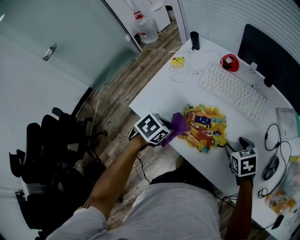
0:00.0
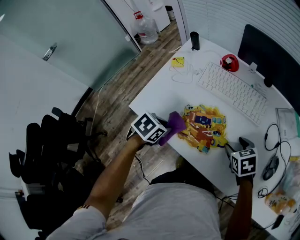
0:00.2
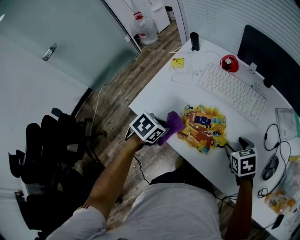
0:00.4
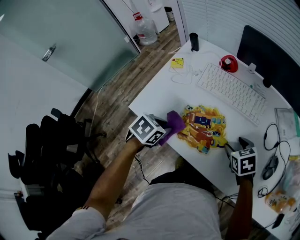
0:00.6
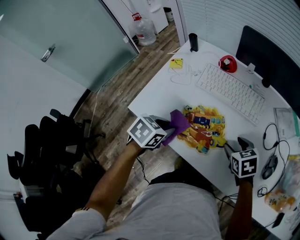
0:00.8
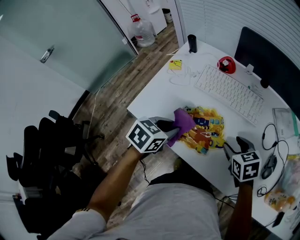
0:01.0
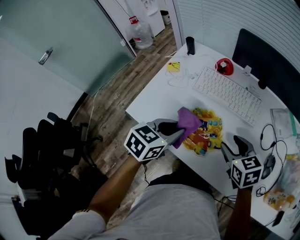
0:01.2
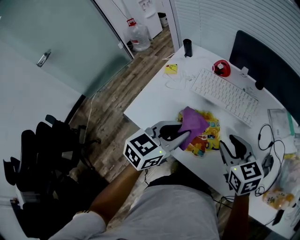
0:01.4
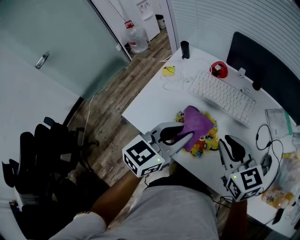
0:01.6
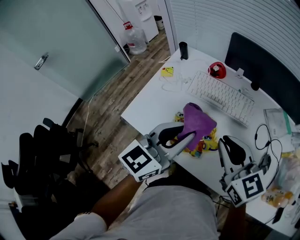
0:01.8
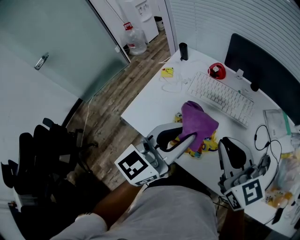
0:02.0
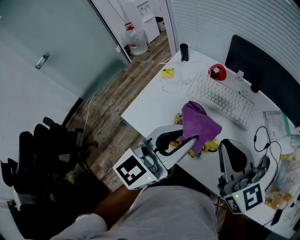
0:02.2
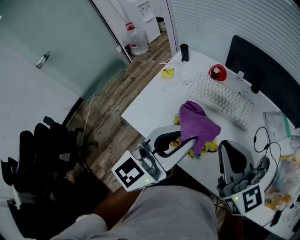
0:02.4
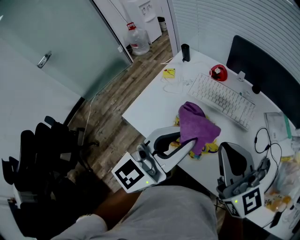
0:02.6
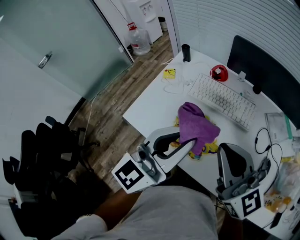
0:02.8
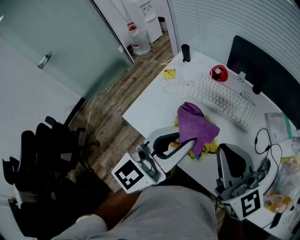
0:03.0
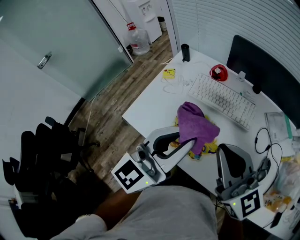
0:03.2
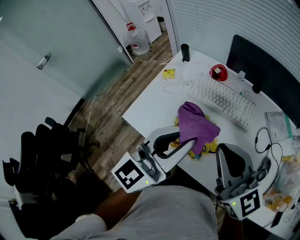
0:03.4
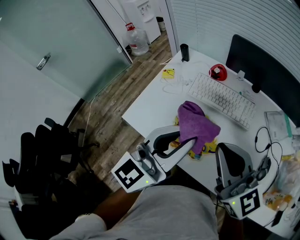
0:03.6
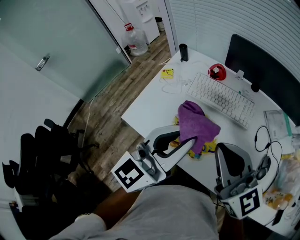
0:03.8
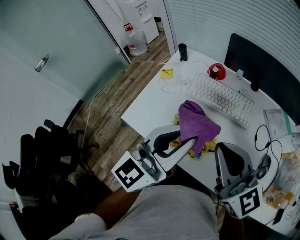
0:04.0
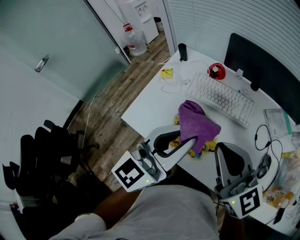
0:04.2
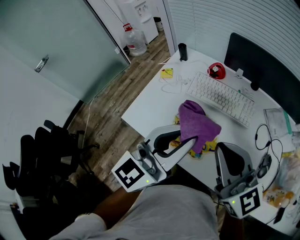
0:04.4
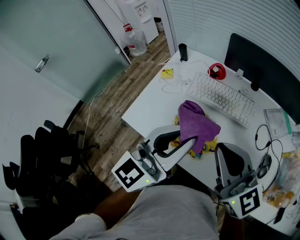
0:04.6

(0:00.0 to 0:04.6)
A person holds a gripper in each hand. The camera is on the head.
0:00.0 - 0:01.6: The right gripper shifts about 20 cm upward, points its fingers approximately 40 degrees further upward, and closes. The left gripper goes some 20 cm upward and to the right, and tips its fingers upward by about 50 degrees.
0:01.6 - 0:03.0: Both grippers move upward, about 10 cm. The left gripper changes its angle by approximately 20 degrees. The right gripper changes its angle by about 30 degrees.
0:03.0 - 0:04.6: Both grippers stay put.

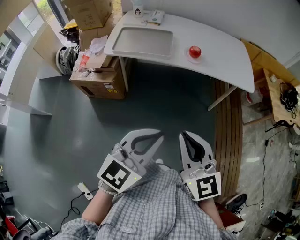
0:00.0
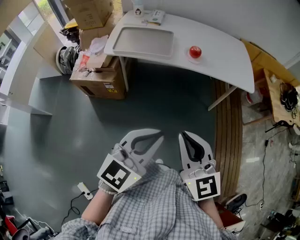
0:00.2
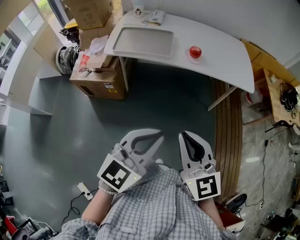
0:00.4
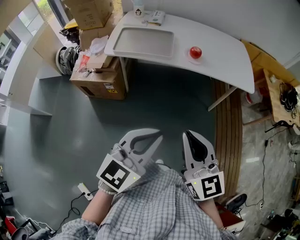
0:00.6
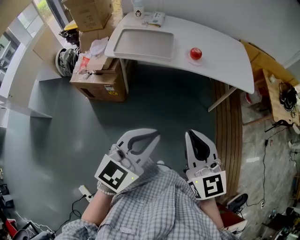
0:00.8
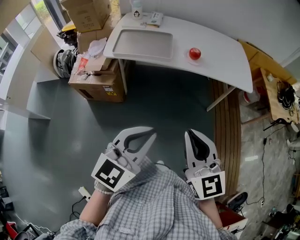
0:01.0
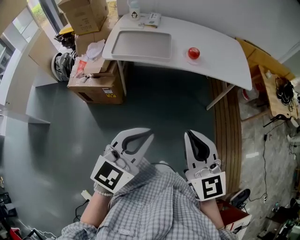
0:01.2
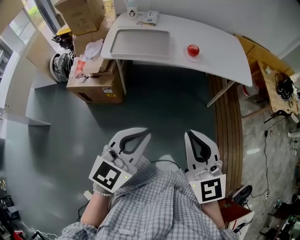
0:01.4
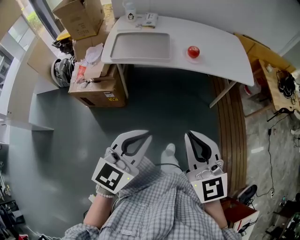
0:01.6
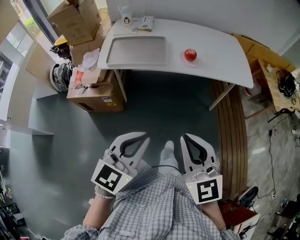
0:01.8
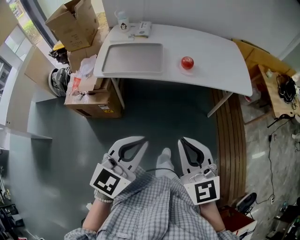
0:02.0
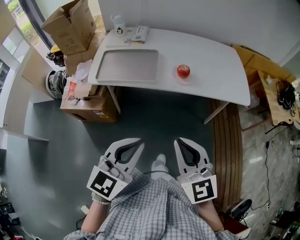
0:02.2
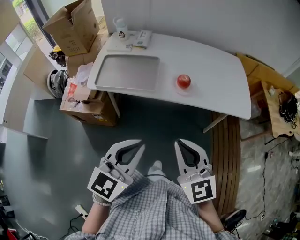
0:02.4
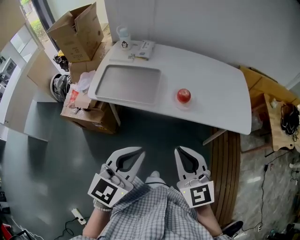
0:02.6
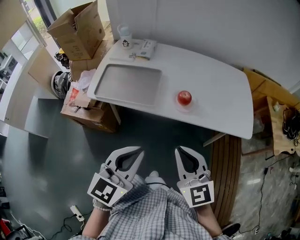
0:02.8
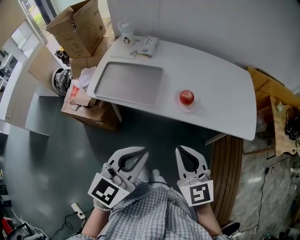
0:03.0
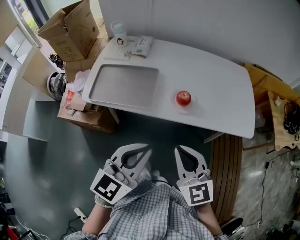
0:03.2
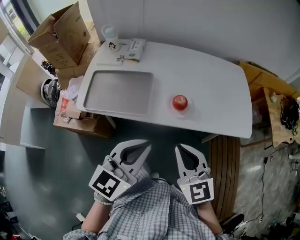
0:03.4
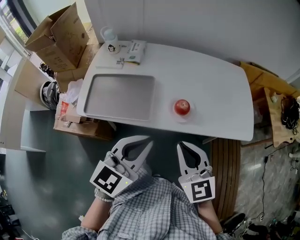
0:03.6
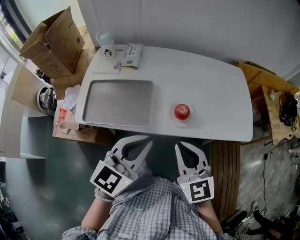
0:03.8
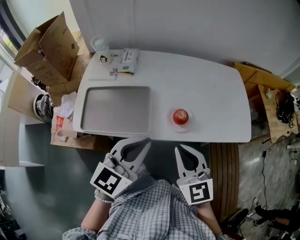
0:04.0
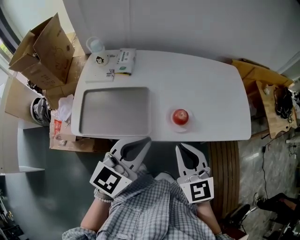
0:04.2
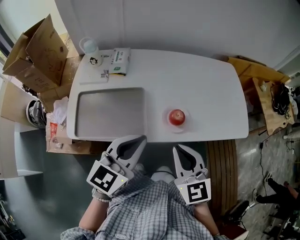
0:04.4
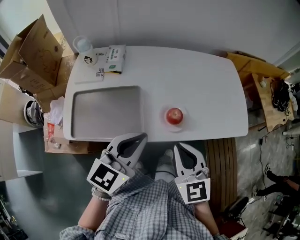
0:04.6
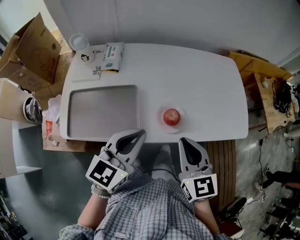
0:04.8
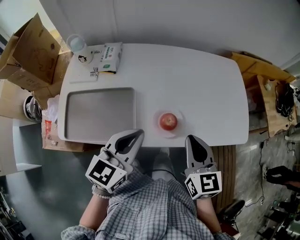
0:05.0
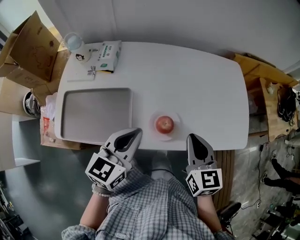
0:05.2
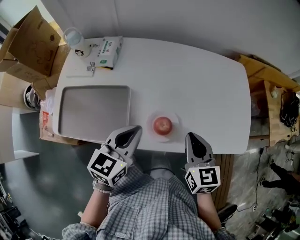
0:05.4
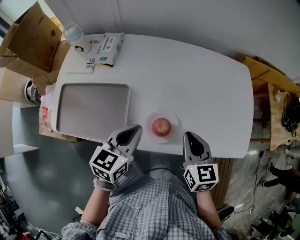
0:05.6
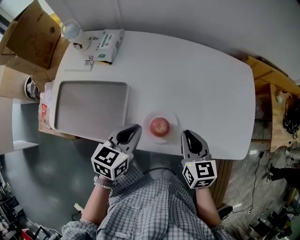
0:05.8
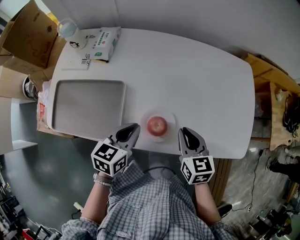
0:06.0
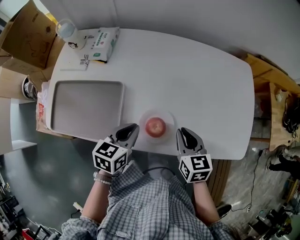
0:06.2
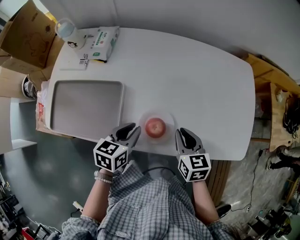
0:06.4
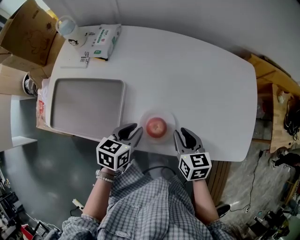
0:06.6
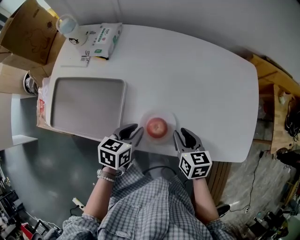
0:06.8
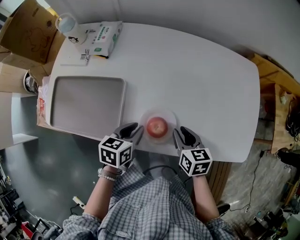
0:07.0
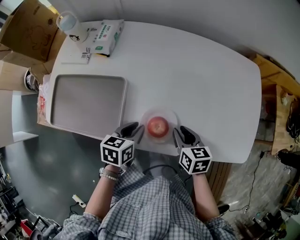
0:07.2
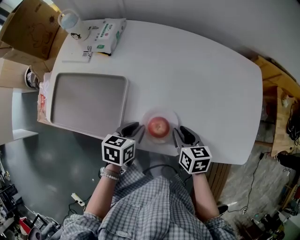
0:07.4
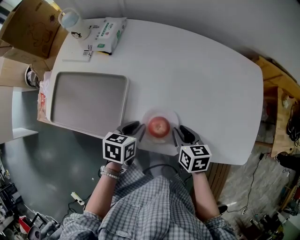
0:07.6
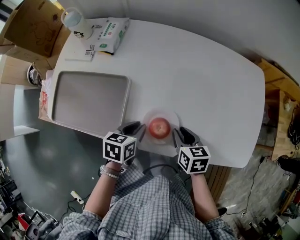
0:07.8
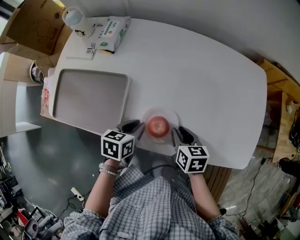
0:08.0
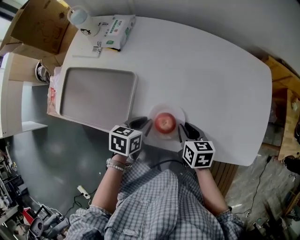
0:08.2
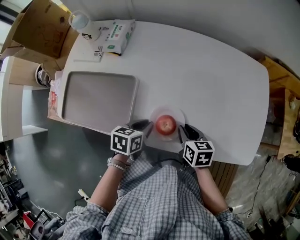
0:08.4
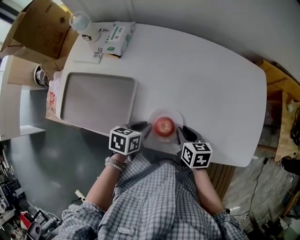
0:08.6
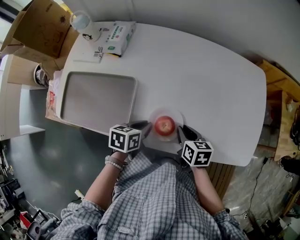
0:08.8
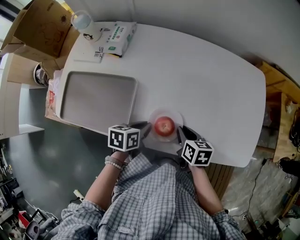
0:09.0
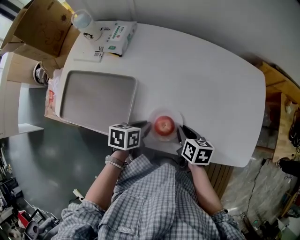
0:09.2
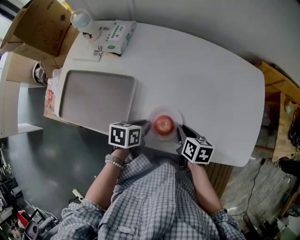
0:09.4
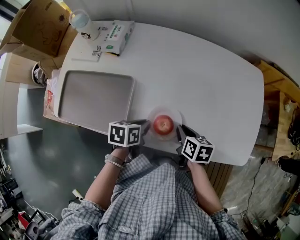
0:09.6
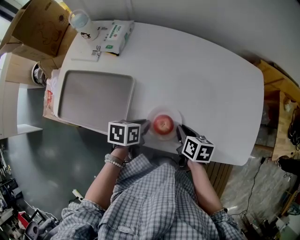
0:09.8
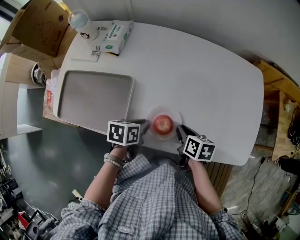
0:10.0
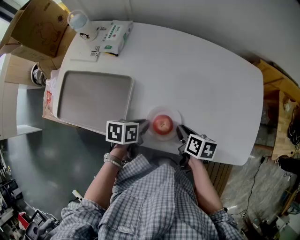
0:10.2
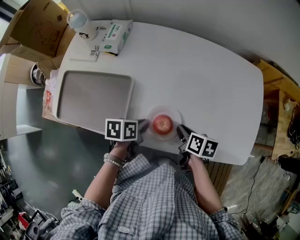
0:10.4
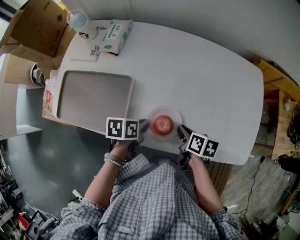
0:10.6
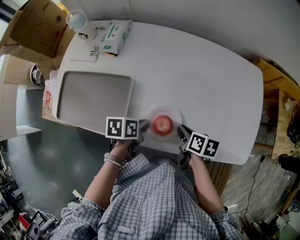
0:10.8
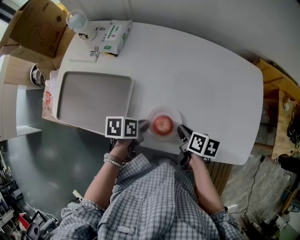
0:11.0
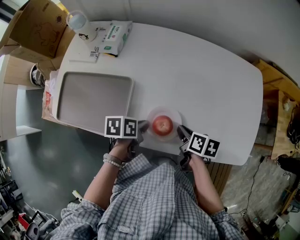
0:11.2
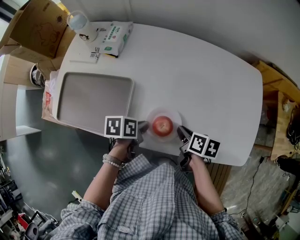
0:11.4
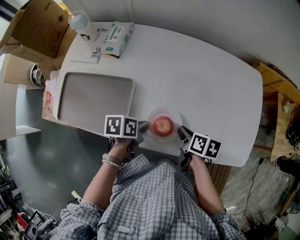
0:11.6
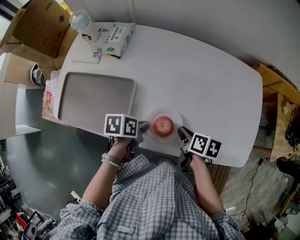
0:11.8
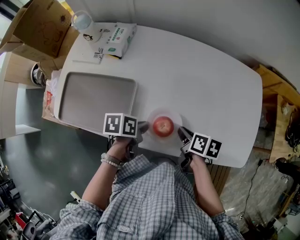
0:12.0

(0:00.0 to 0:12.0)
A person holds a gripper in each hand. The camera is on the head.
0:00.0 - 0:01.6: The left gripper is displaced to the left by roughly 10 cm.
0:01.6 - 0:03.0: The left gripper travels forward and to the right by approximately 25 cm; the right gripper goes roughly 25 cm forward.
0:03.0 - 0:04.4: Both grippers travel together forward, roughly 15 cm.
0:04.4 - 0:06.0: The left gripper is displaced downward, forward and to the right by some 20 cm, and turns by about 30 degrees; the right gripper goes some 25 cm forward, downward and to the right, and swivels approximately 20 degrees.
0:06.0 - 0:07.6: The two grippers go roughly 10 cm downward. The left gripper changes its angle by approximately 20 degrees.
0:07.6 - 0:09.0: The grippers make only small movements.
0:09.0 - 0:12.0: There are only small adjustments of the grippers.

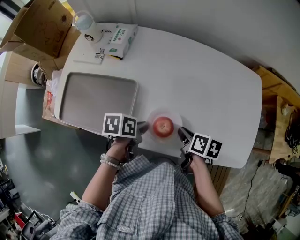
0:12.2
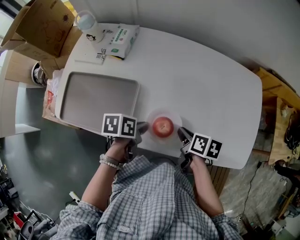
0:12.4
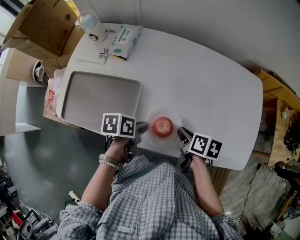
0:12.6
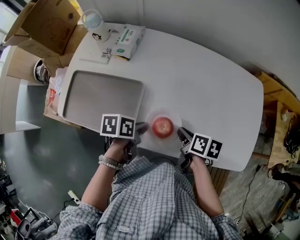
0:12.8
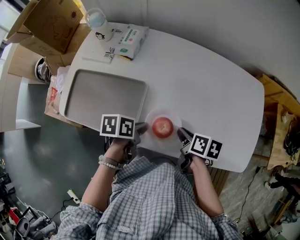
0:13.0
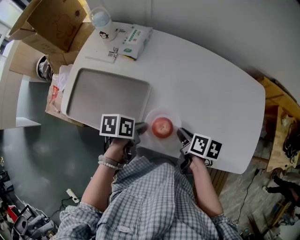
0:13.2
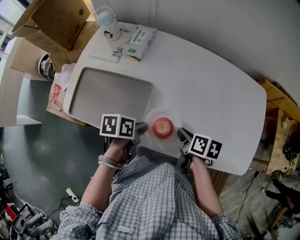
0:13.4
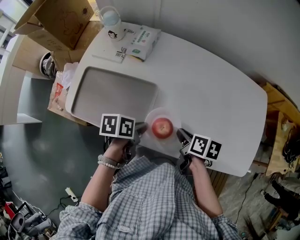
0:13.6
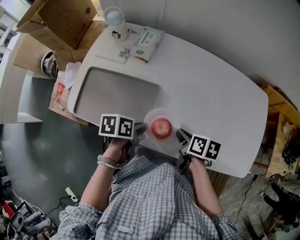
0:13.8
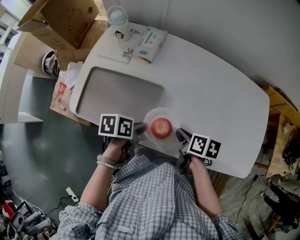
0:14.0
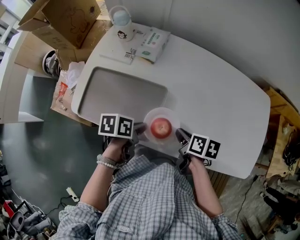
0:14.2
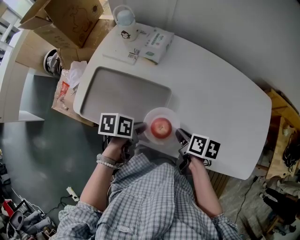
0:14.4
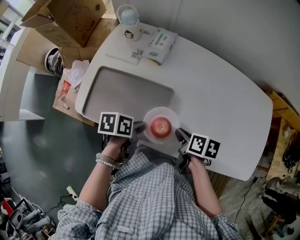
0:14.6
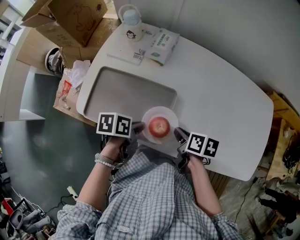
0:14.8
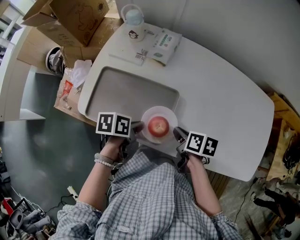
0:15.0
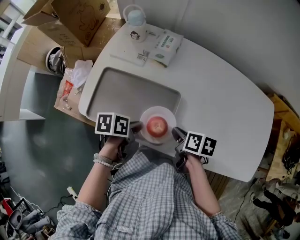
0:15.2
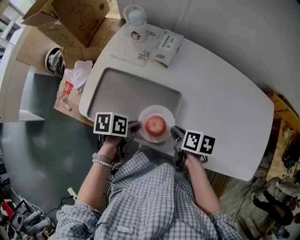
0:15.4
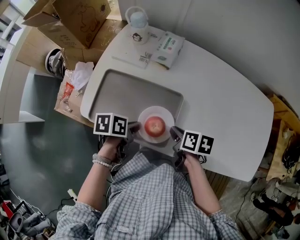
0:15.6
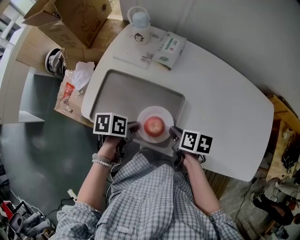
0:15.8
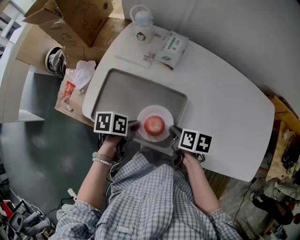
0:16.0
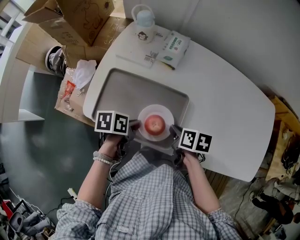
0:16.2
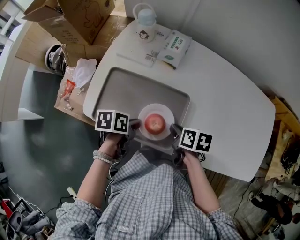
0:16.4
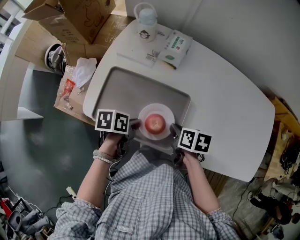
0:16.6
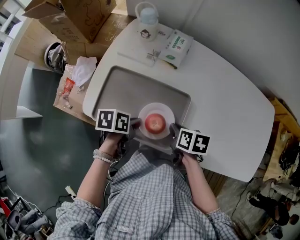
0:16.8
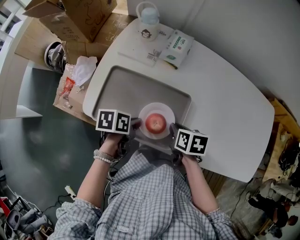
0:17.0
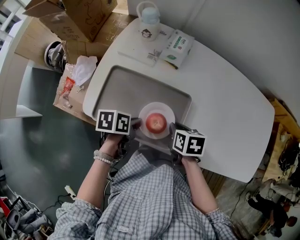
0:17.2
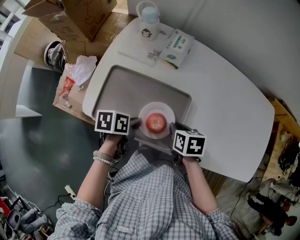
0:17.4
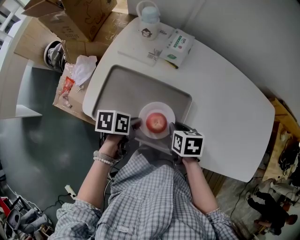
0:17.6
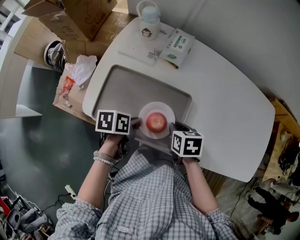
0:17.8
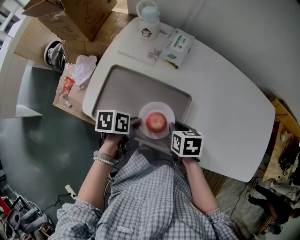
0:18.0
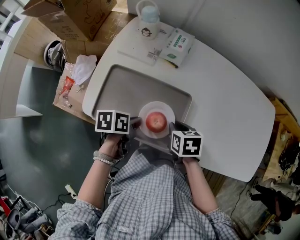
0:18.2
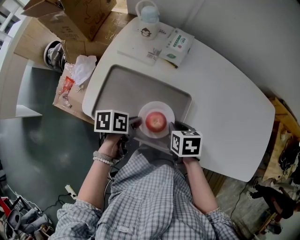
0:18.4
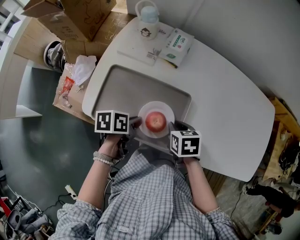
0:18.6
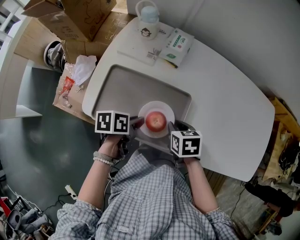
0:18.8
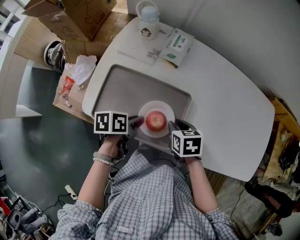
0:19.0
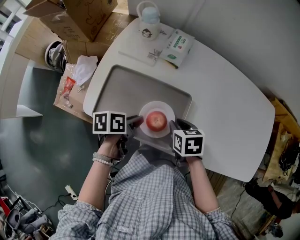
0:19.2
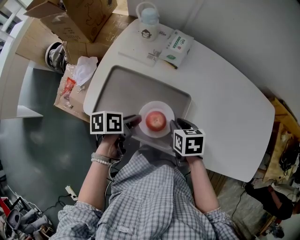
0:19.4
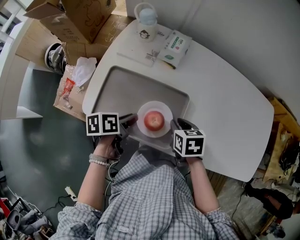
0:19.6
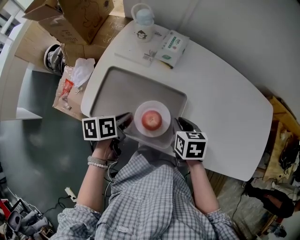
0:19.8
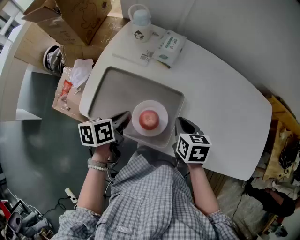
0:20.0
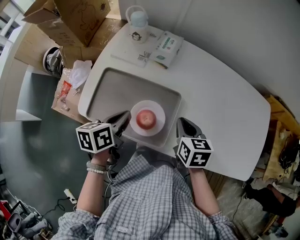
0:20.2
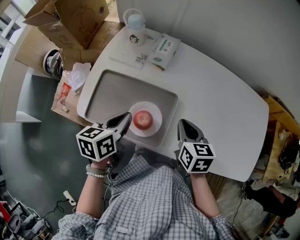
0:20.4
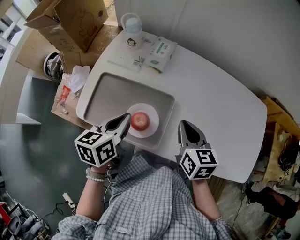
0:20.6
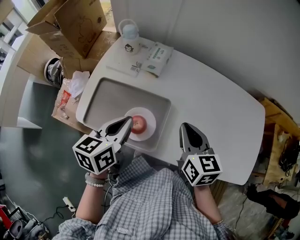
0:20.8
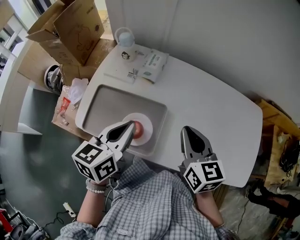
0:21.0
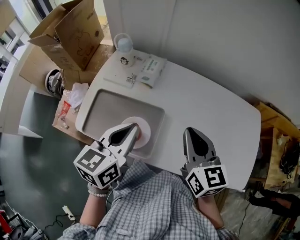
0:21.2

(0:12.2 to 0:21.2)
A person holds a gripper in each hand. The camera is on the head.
0:12.2 - 0:13.8: Both grippers move to the left, some 10 cm.
0:13.8 - 0:15.2: Both grippers move to the left, some 10 cm.
0:15.2 - 0:16.6: The left gripper moves approximately 5 cm; the right gripper moves to the left, about 5 cm.
0:16.6 - 0:18.2: The grippers move only a little.
0:18.2 - 0:19.8: The grippers move only a little.
0:19.8 - 0:21.2: The left gripper shifts approximately 25 cm upward and to the right, and changes its angle by approximately 40 degrees; the right gripper heads upward, covering roughly 20 cm, and angles its fingers upward, by roughly 40 degrees.
